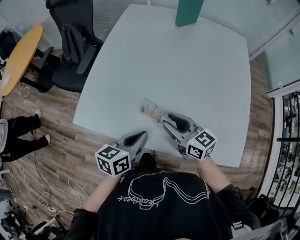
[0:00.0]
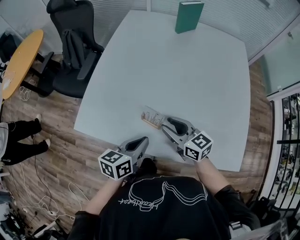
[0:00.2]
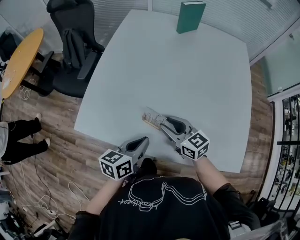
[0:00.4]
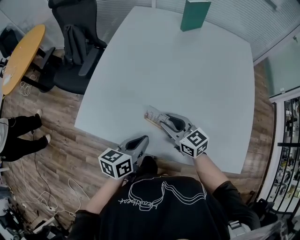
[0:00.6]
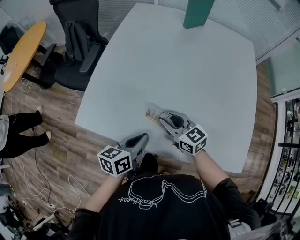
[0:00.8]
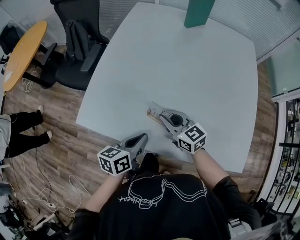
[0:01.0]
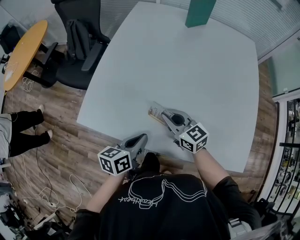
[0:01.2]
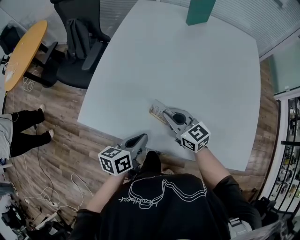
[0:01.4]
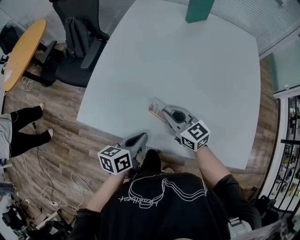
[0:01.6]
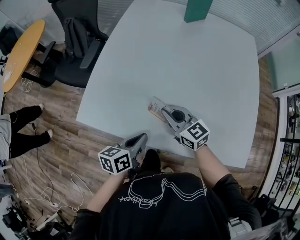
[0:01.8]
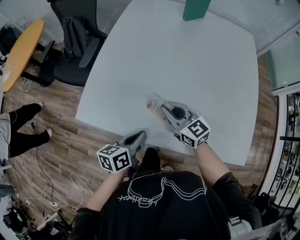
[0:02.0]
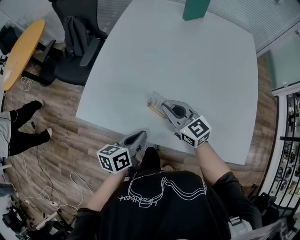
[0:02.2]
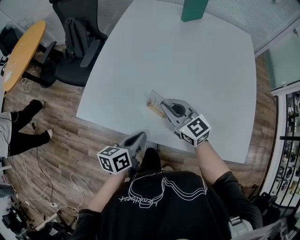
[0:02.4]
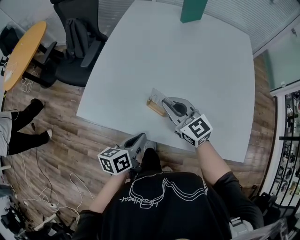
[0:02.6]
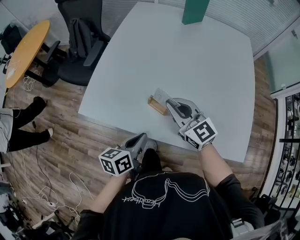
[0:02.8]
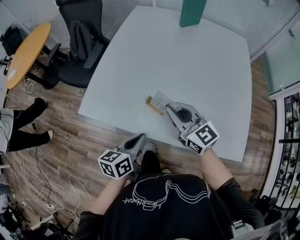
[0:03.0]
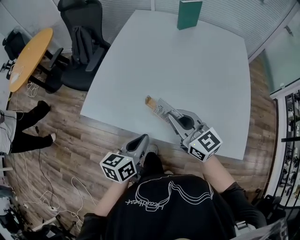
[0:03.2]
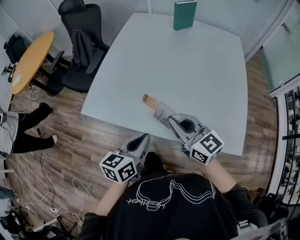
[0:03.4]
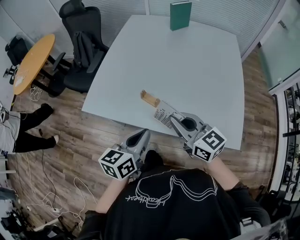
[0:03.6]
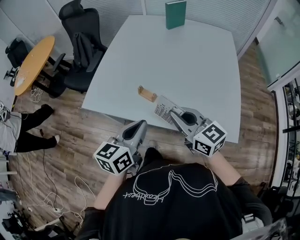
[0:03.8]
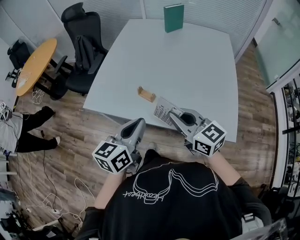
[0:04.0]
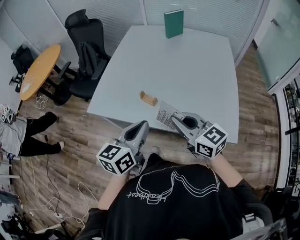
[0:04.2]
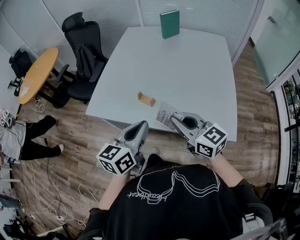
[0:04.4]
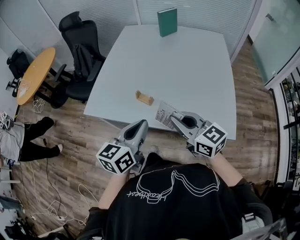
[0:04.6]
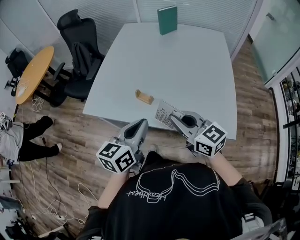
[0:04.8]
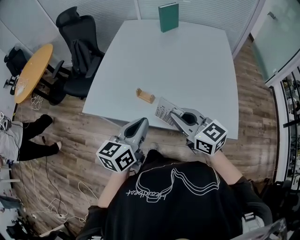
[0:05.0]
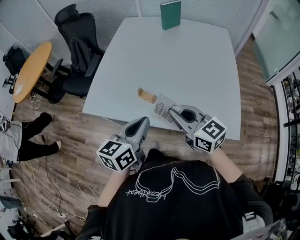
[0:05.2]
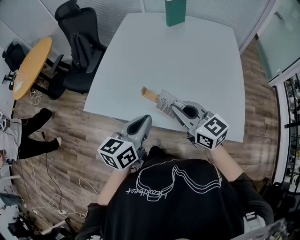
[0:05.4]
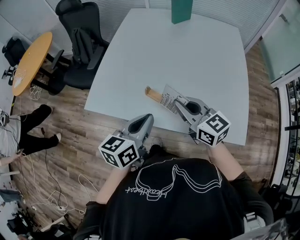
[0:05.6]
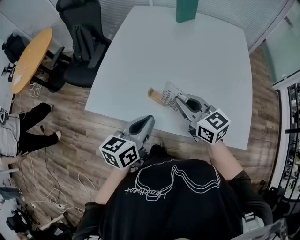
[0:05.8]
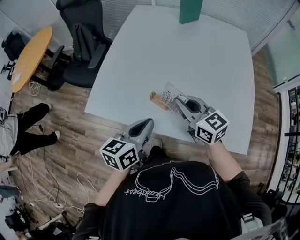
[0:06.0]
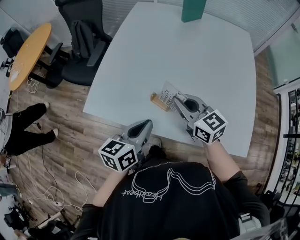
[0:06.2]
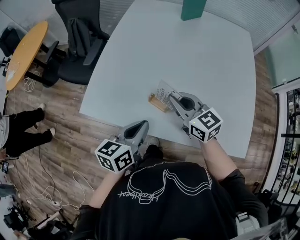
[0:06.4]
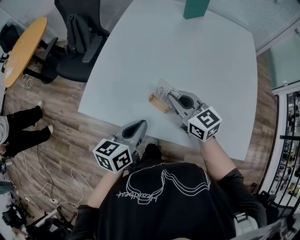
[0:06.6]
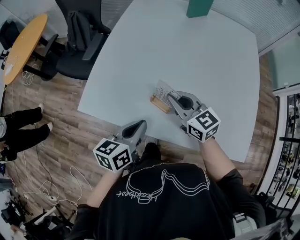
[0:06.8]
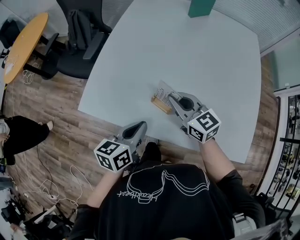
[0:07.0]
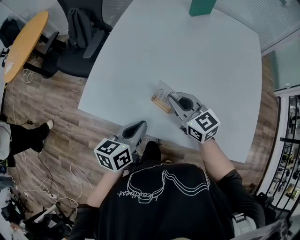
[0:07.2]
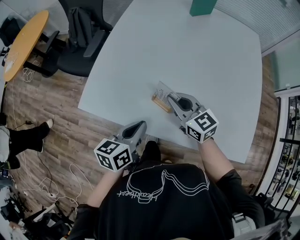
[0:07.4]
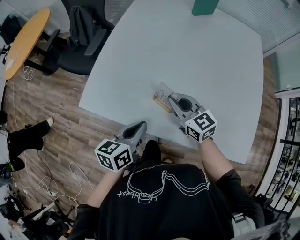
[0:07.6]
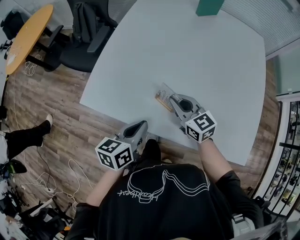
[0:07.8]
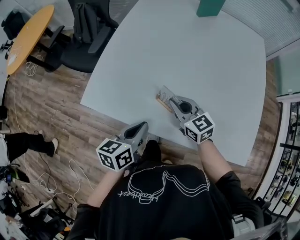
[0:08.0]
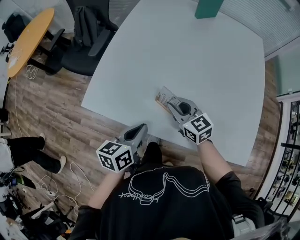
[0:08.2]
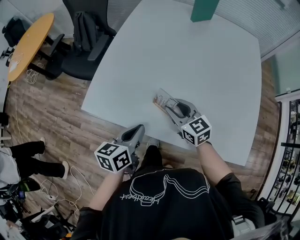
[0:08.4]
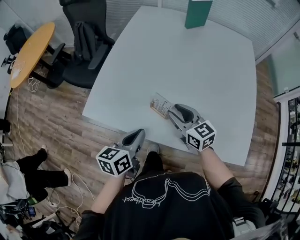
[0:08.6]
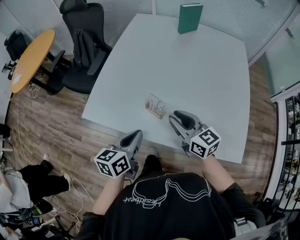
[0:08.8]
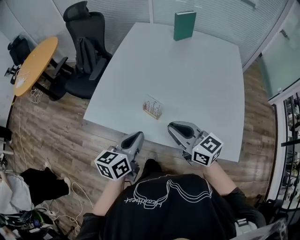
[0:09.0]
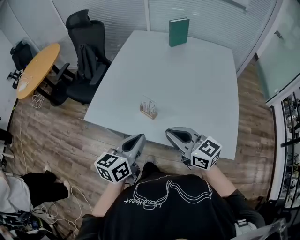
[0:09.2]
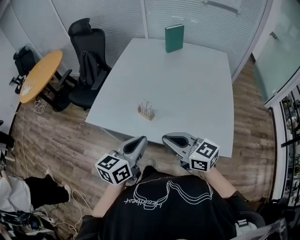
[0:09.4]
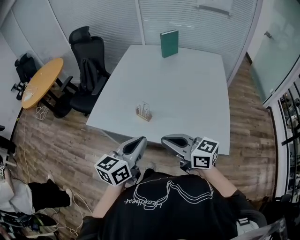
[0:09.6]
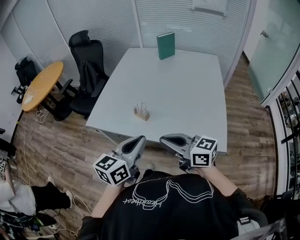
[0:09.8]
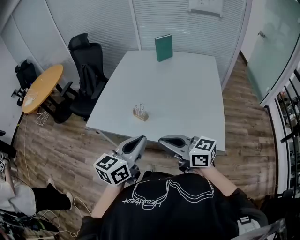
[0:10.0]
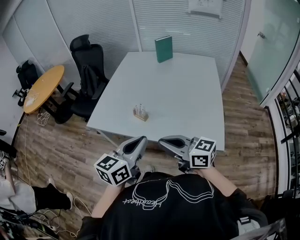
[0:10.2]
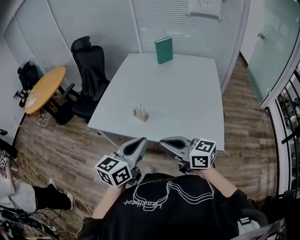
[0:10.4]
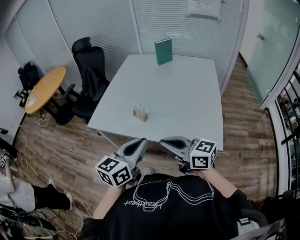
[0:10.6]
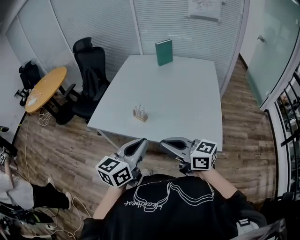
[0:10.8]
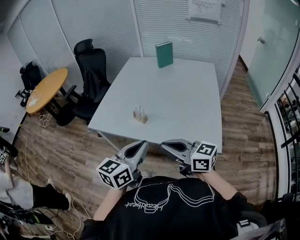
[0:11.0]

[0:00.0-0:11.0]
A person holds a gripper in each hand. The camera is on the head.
0.0 to 1.6 s: The left gripper shifts some 5 cm downward. The right gripper moves roughly 10 cm, and closes its fingers.
1.6 to 3.2 s: The left gripper travels backward and upward by some 10 cm. The right gripper heads upward and backward, covering about 15 cm.
3.2 to 4.8 s: The left gripper moves upward, backward and to the right, roughly 15 cm, while the right gripper is displaced backward and to the right by about 15 cm.
4.8 to 6.2 s: The right gripper heads forward, covering approximately 20 cm; the left gripper heads forward, downward and to the left, covering about 15 cm.
6.2 to 7.8 s: The two grippers go roughly 10 cm downward.
7.8 to 9.4 s: The left gripper goes roughly 25 cm upward, backward and to the right, and rotates roughly 20 degrees; the right gripper goes approximately 30 cm backward and upward, and opens, then closes once more.
9.4 to 11.0 s: The right gripper goes approximately 10 cm backward. Meanwhile the left gripper heads backward and upward, covering some 15 cm.

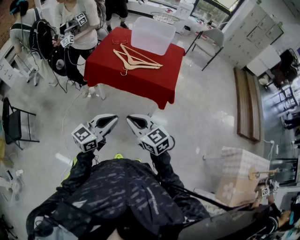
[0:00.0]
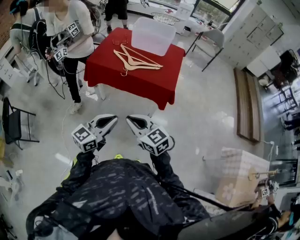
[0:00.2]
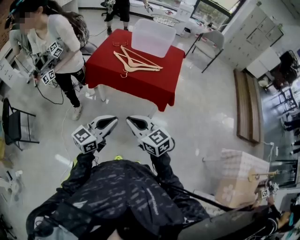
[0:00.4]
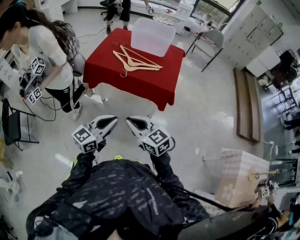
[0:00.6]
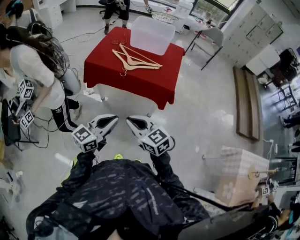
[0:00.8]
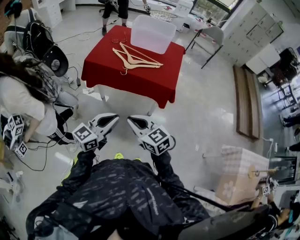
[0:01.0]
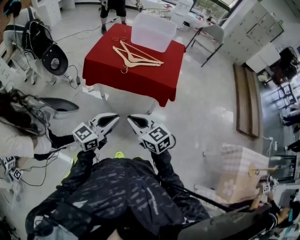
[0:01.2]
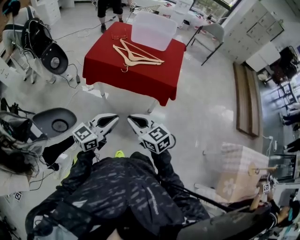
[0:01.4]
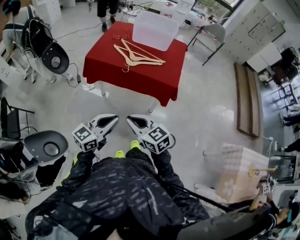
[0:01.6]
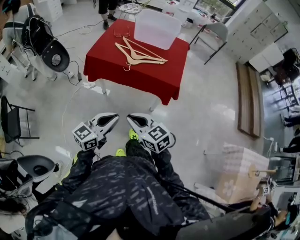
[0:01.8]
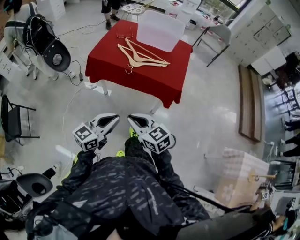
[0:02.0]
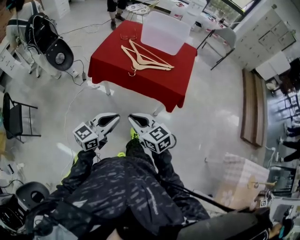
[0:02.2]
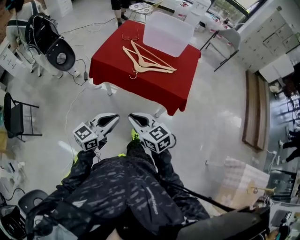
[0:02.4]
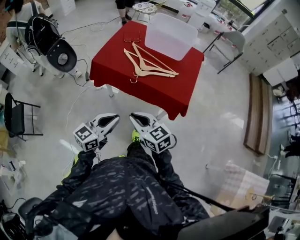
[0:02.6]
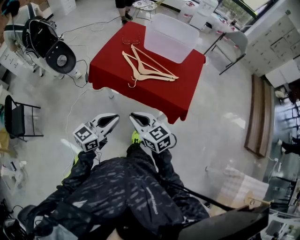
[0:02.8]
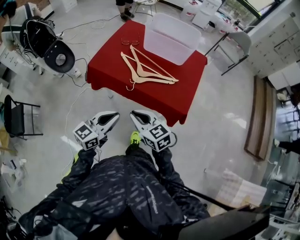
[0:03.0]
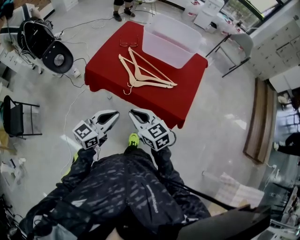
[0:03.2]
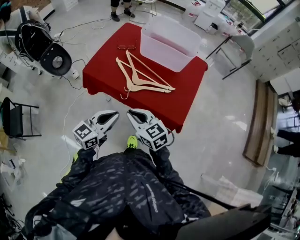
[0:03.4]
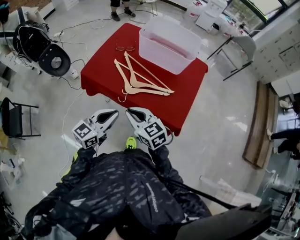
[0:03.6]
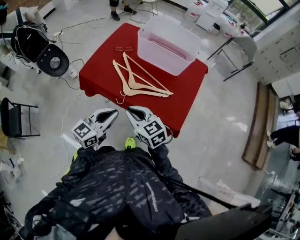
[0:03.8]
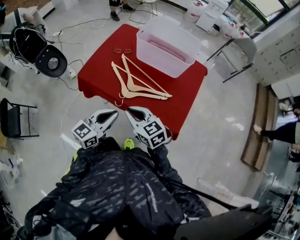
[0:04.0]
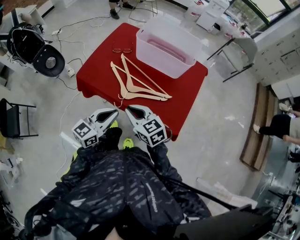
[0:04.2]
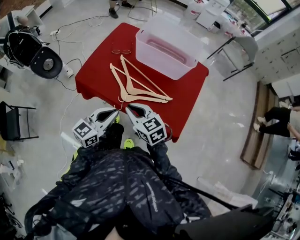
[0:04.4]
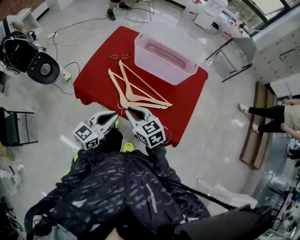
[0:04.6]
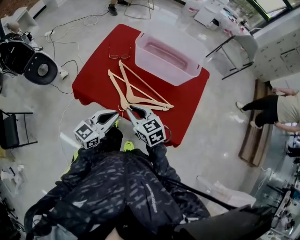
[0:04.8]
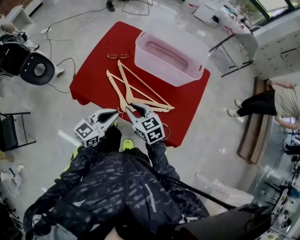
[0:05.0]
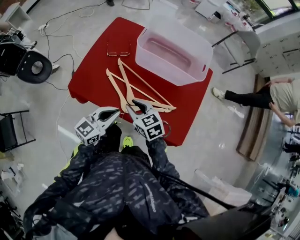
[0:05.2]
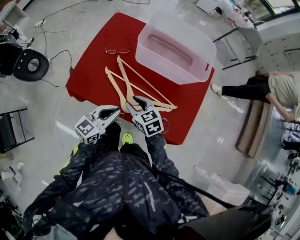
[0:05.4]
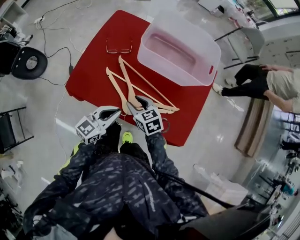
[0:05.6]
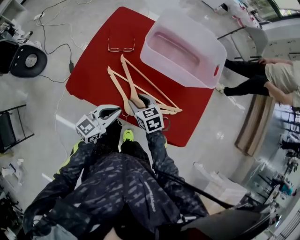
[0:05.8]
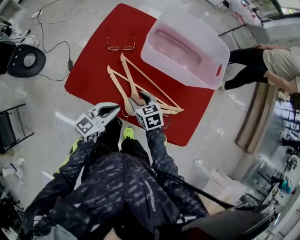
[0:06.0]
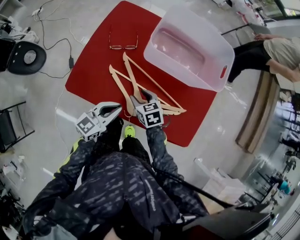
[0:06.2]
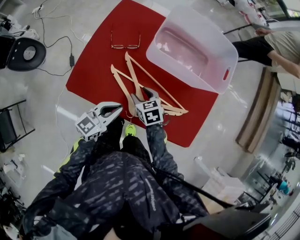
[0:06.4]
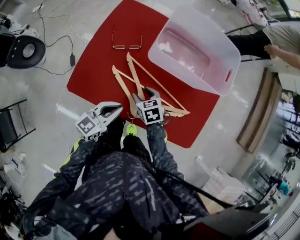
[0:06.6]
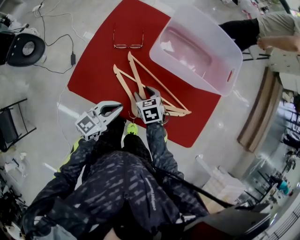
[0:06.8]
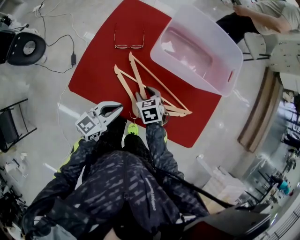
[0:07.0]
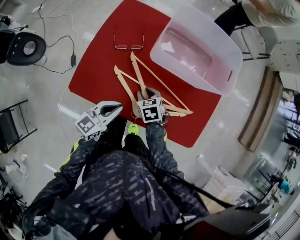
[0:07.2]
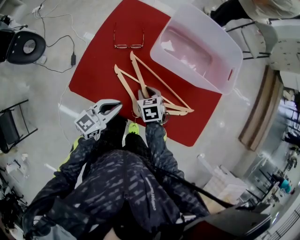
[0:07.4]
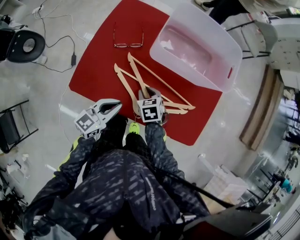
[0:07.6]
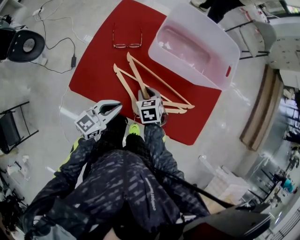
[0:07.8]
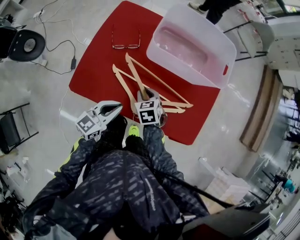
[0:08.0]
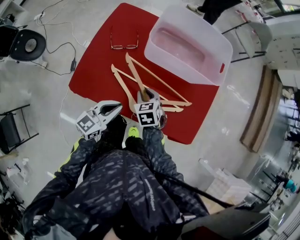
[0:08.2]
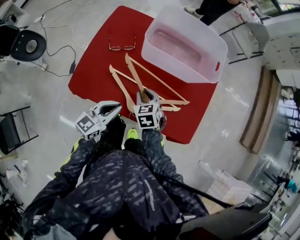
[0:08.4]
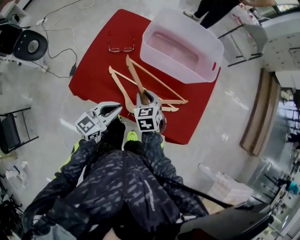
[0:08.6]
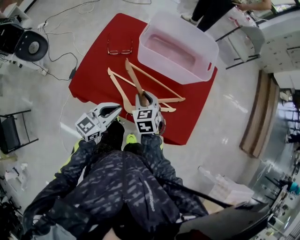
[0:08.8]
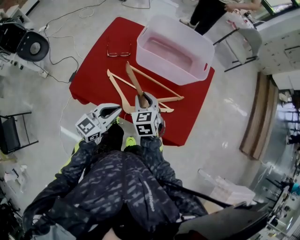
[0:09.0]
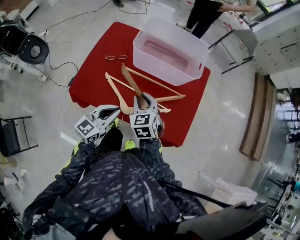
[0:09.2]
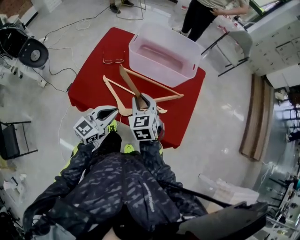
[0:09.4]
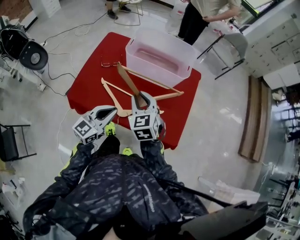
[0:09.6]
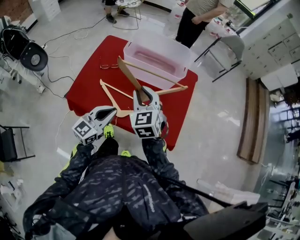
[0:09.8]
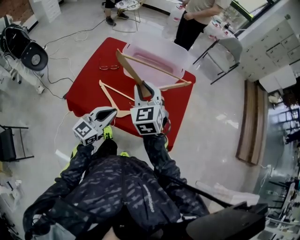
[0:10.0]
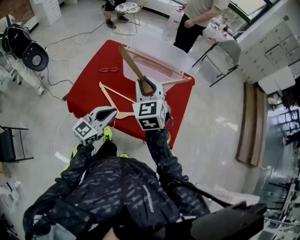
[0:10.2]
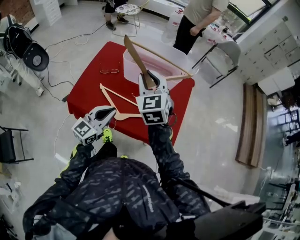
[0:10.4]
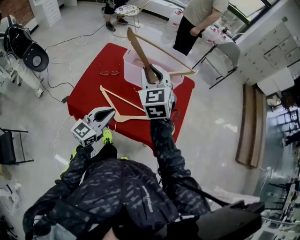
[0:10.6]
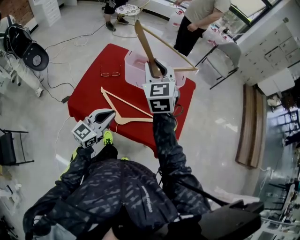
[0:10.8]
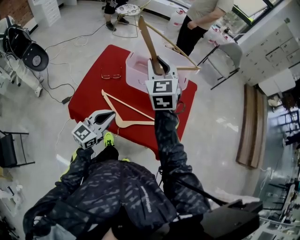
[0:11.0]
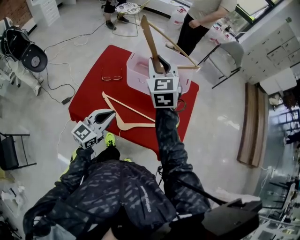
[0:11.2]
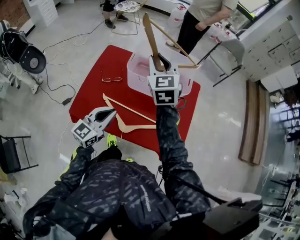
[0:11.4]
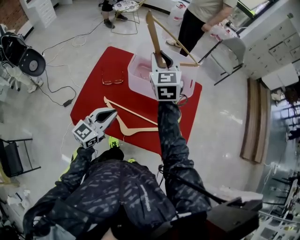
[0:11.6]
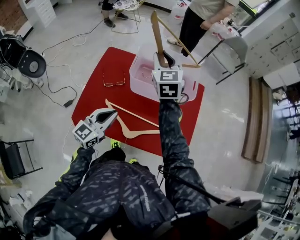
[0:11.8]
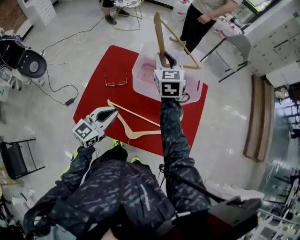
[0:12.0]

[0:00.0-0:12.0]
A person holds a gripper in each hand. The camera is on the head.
0.0 to 1.6 s: The right gripper shifts by about 5 cm; the left gripper ends up approximately 5 cm from where it was.
1.6 to 3.0 s: Both grippers travel together forward, roughly 25 cm.
3.0 to 4.4 s: Both grippers move forward, roughly 20 cm.
4.4 to 6.0 s: The grippers both shift forward and downward by roughly 25 cm. The right gripper rotates roughly 30 degrees, and opens its fingers.
6.0 to 7.6 s: The right gripper shifts by roughly 5 cm.
7.6 to 9.0 s: The right gripper heads upward and to the right, covering some 15 cm, and turns by roughly 20 degrees. Meanwhile the left gripper shifts some 10 cm to the right and upward.
9.0 to 10.4 s: The right gripper goes some 25 cm upward, and swivels some 30 degrees. The left gripper goes about 10 cm upward and to the right.
10.4 to 12.0 s: The left gripper travels forward and to the left by some 20 cm, while the right gripper moves forward, roughly 25 cm.

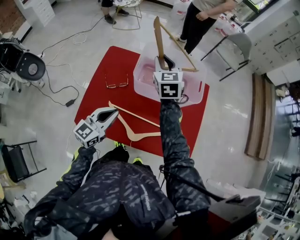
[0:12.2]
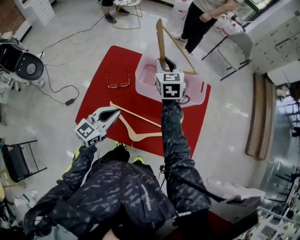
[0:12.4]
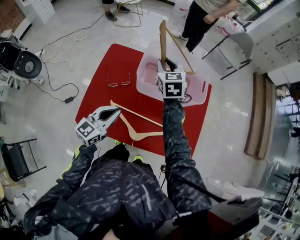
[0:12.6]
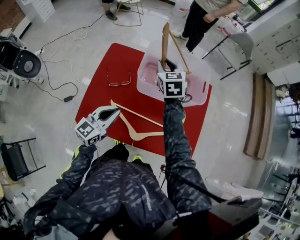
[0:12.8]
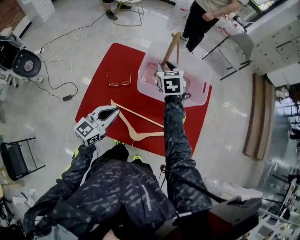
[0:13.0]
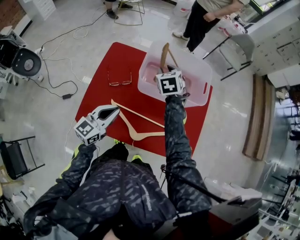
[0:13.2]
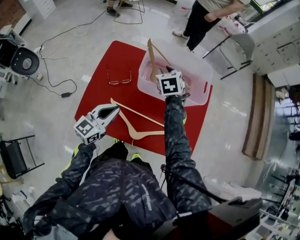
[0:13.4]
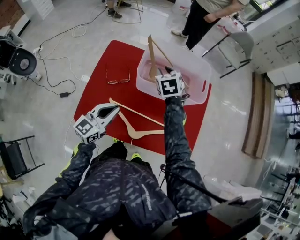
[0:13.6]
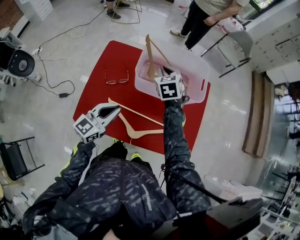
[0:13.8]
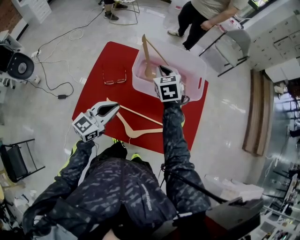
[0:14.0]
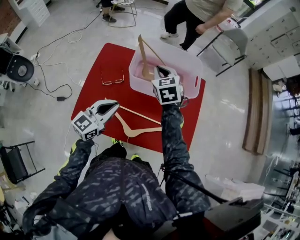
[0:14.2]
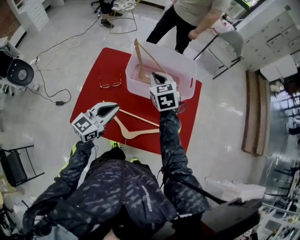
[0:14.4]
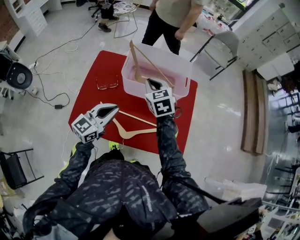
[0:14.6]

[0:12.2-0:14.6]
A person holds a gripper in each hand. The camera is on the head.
12.2 to 13.4 s: The right gripper shifts approximately 10 cm downward, and changes its angle by about 30 degrees.
13.4 to 14.6 s: The left gripper is displaced to the right by approximately 10 cm, while the right gripper goes roughly 15 cm backward, upward and to the right, and closes its fingers.
